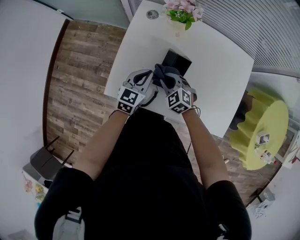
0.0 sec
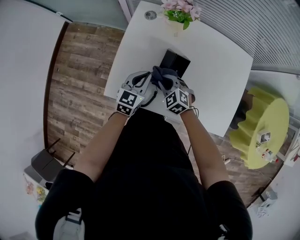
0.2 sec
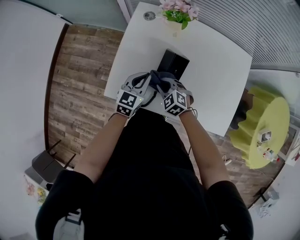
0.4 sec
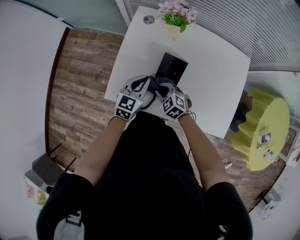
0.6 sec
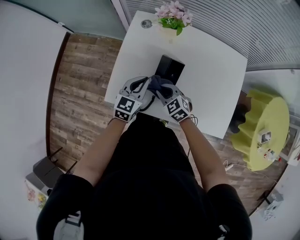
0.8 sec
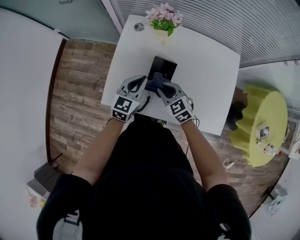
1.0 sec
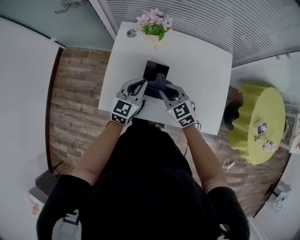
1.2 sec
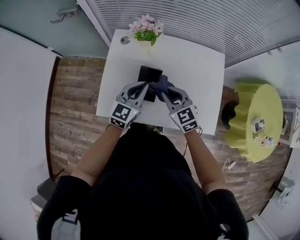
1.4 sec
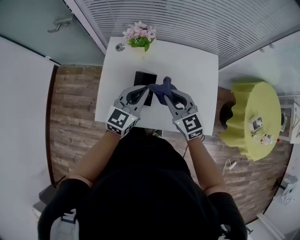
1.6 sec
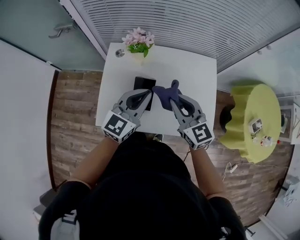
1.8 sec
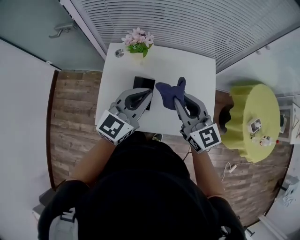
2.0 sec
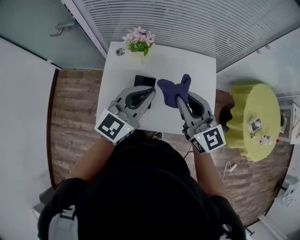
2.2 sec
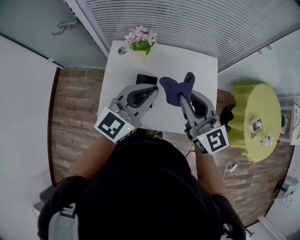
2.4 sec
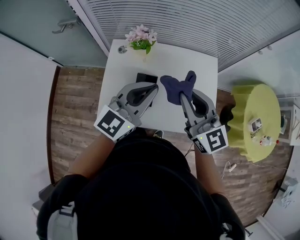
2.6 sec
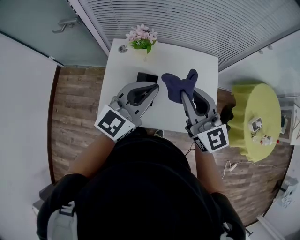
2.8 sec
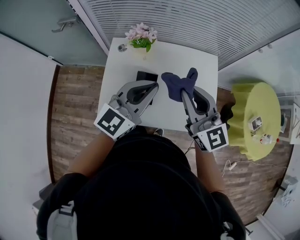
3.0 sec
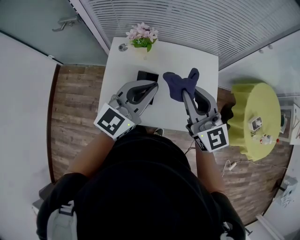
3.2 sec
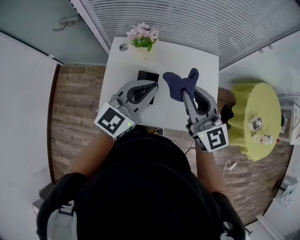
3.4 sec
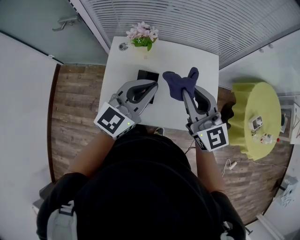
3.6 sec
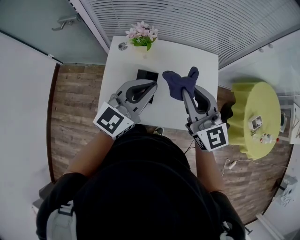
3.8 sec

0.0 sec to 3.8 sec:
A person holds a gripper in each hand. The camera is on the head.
0.0 sec to 1.2 sec: The grippers both shift upward and to the right by some 10 cm. The right gripper swivels about 20 degrees.
1.2 sec to 2.6 sec: Both grippers travel together upward, approximately 25 cm. The right gripper angles its fingers upward, by about 30 degrees. Meanwhile the left gripper swivels about 20 degrees.
2.6 sec to 3.8 sec: Both grippers stay about where they are.

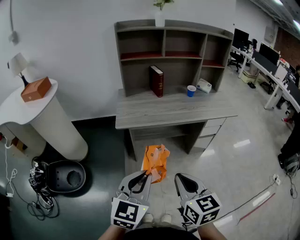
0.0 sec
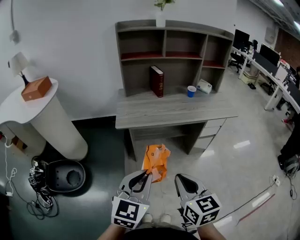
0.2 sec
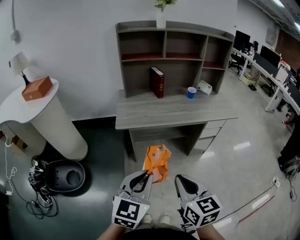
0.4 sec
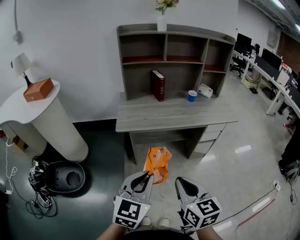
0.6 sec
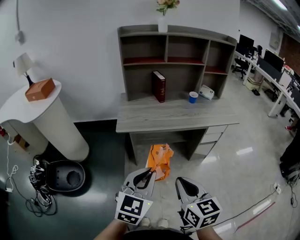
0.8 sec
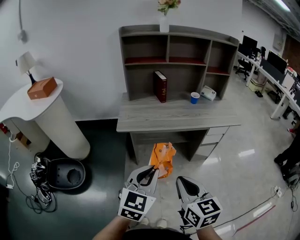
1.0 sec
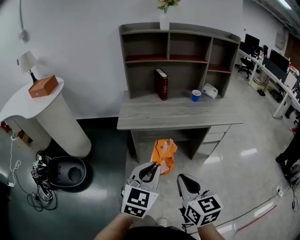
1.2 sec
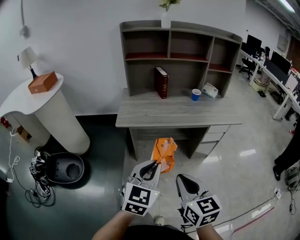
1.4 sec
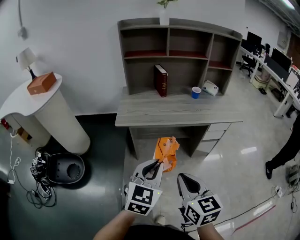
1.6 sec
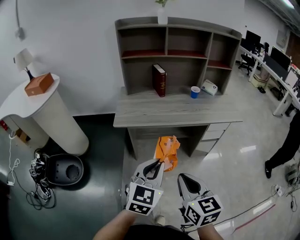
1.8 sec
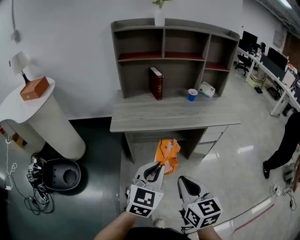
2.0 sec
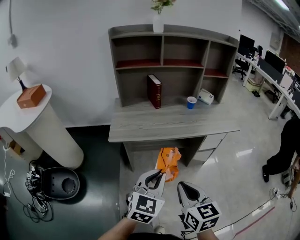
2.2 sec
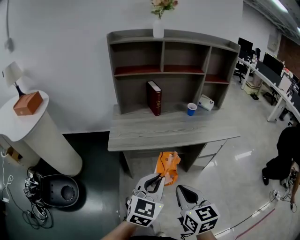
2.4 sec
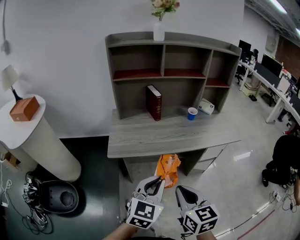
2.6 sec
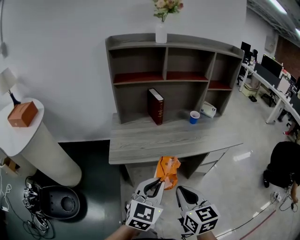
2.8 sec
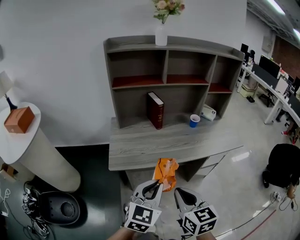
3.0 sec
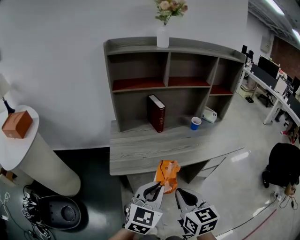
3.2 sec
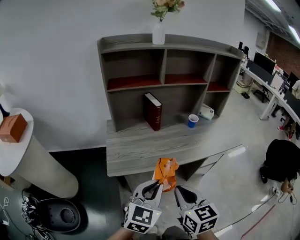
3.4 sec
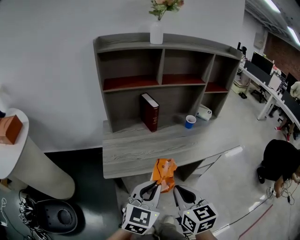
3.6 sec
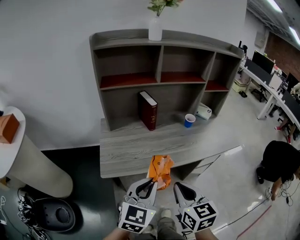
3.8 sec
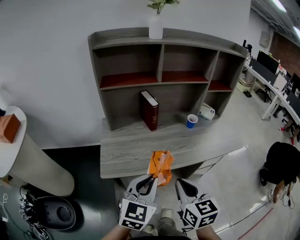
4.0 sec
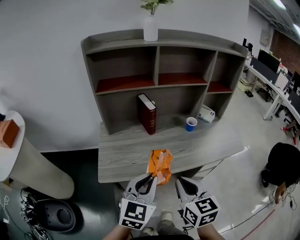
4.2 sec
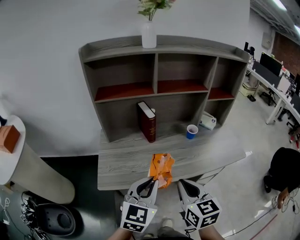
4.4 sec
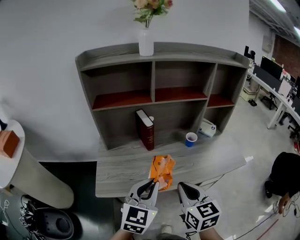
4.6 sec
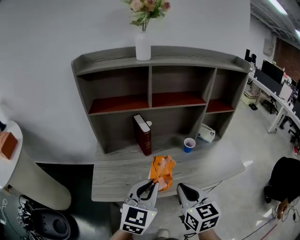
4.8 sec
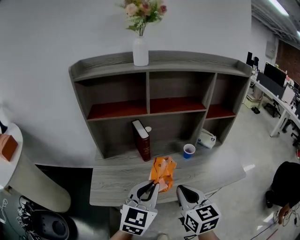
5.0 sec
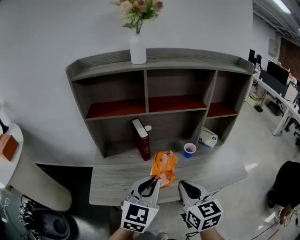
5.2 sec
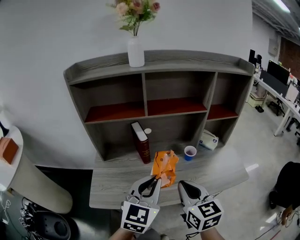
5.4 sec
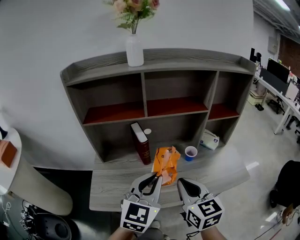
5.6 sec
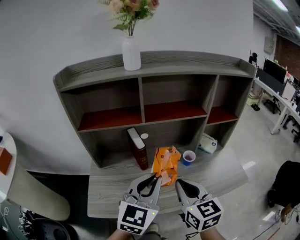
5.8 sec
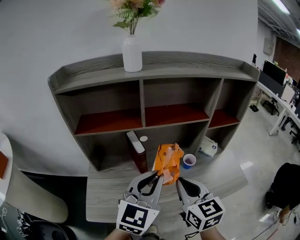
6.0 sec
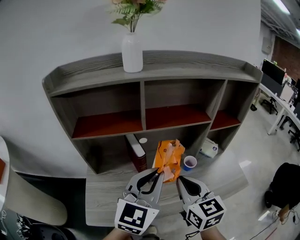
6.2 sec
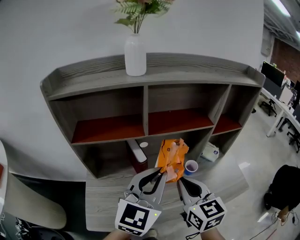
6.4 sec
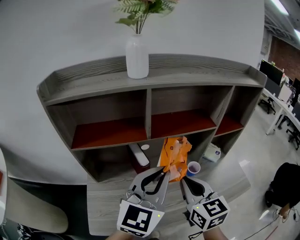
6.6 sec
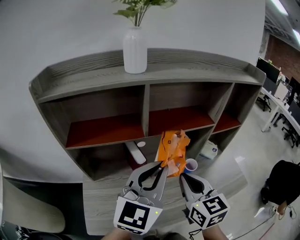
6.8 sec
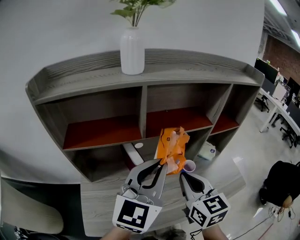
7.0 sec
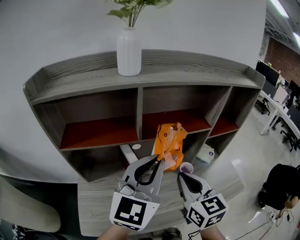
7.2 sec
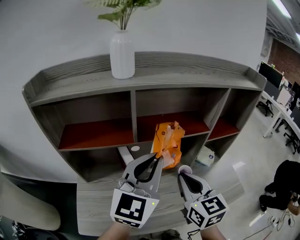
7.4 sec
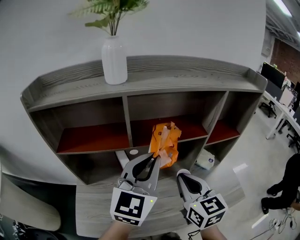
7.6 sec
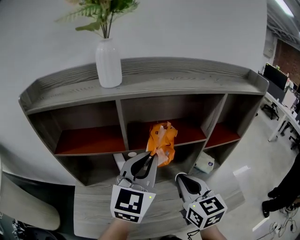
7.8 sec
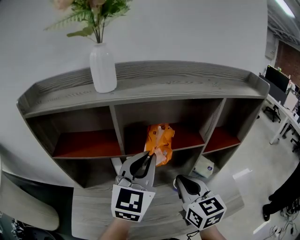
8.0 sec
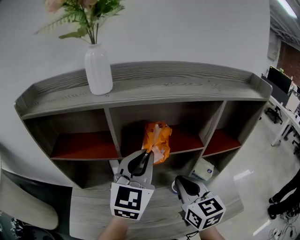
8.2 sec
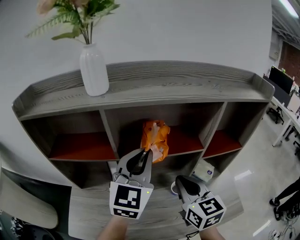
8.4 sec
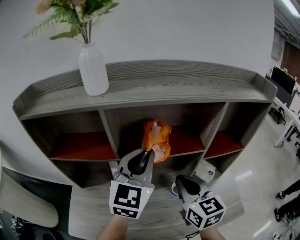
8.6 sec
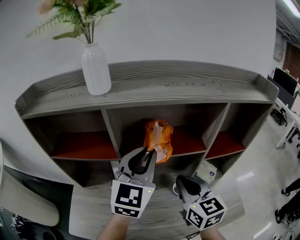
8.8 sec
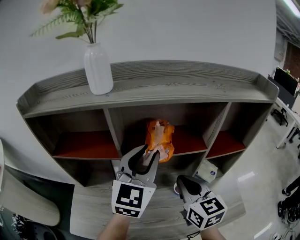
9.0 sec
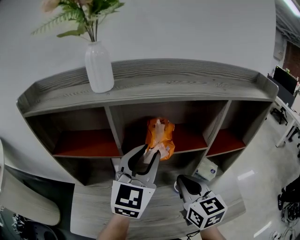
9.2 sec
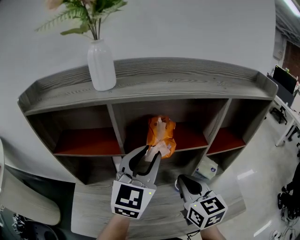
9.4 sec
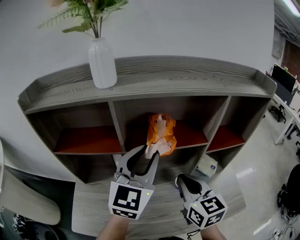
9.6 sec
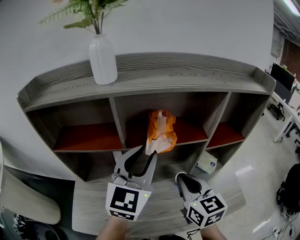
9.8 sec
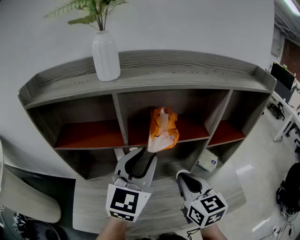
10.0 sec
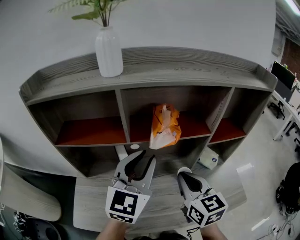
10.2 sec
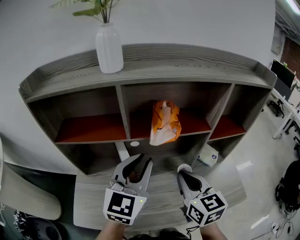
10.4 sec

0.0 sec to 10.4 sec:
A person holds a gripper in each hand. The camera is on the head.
0.0 sec to 1.4 sec: The right gripper shifts about 5 cm to the right. The left gripper heads to the right and forward, covering roughly 10 cm.
1.4 sec to 3.0 sec: Both grippers travel together forward, roughly 20 cm.
3.0 sec to 4.4 sec: The two grippers go some 15 cm forward.
4.4 sec to 6.0 sec: The left gripper moves forward and upward, roughly 20 cm. Meanwhile the right gripper heads forward, covering approximately 20 cm.
6.0 sec to 7.4 sec: The left gripper moves forward and upward, approximately 15 cm; the right gripper moves forward, approximately 10 cm.
7.4 sec to 9.0 sec: The right gripper travels forward and to the right by roughly 10 cm. The left gripper is displaced forward by some 10 cm, and opens.
9.0 sec to 10.4 sec: The right gripper shifts by roughly 5 cm. Meanwhile the left gripper shifts roughly 5 cm backward.

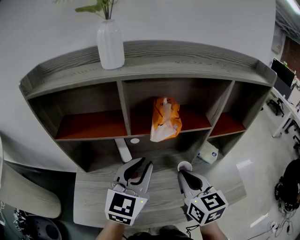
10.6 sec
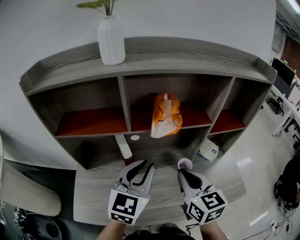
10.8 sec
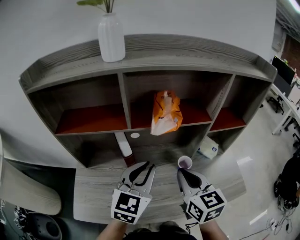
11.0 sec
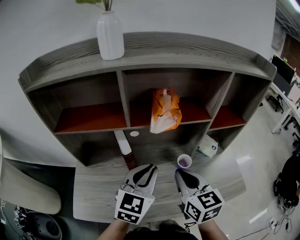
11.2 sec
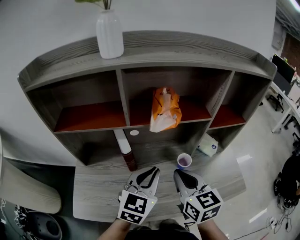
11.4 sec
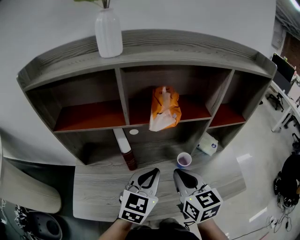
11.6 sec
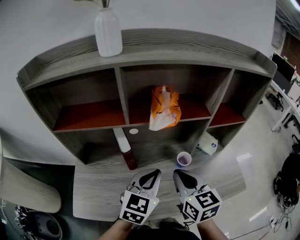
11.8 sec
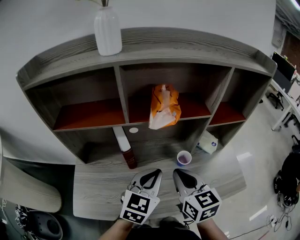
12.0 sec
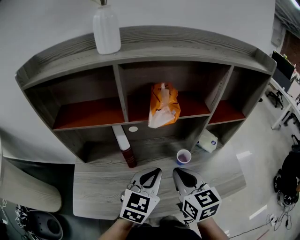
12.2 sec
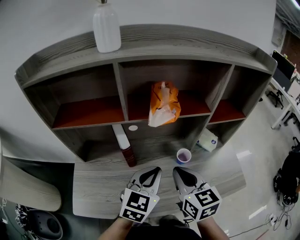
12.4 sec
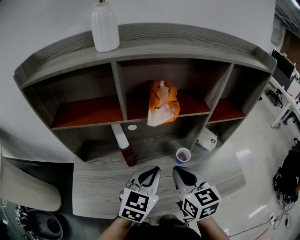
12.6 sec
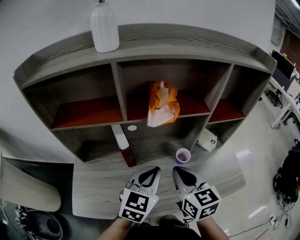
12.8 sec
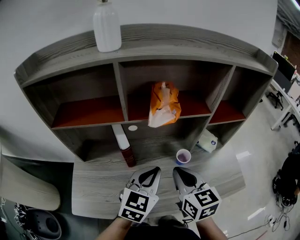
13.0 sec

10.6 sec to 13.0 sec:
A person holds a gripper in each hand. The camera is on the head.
10.6 sec to 11.8 sec: The left gripper moves downward, roughly 10 cm.
11.8 sec to 13.0 sec: Neither gripper changes place.

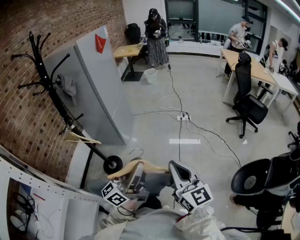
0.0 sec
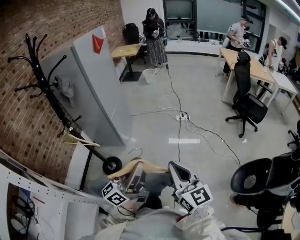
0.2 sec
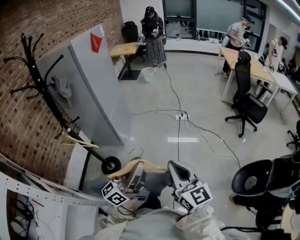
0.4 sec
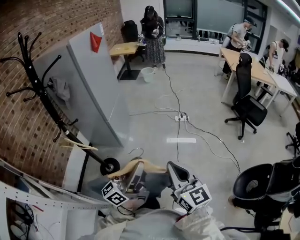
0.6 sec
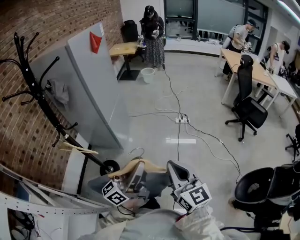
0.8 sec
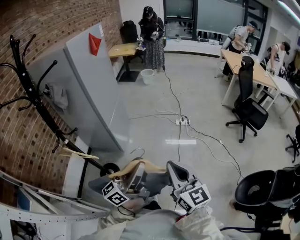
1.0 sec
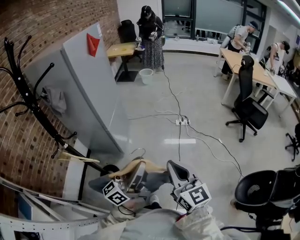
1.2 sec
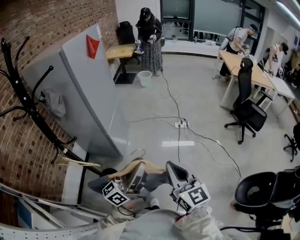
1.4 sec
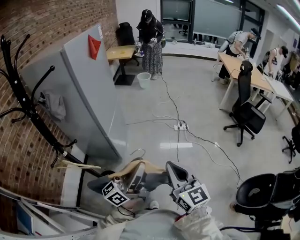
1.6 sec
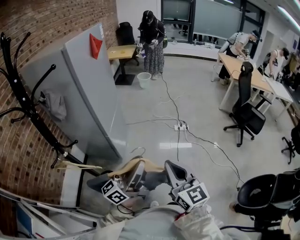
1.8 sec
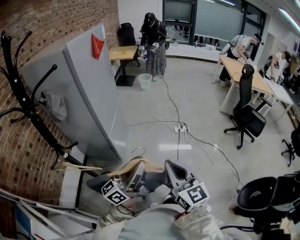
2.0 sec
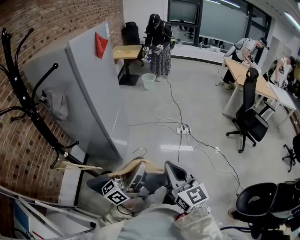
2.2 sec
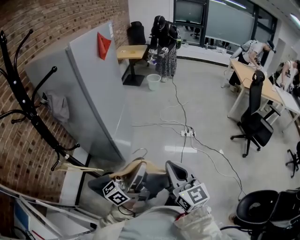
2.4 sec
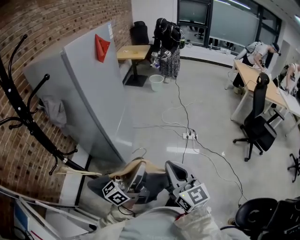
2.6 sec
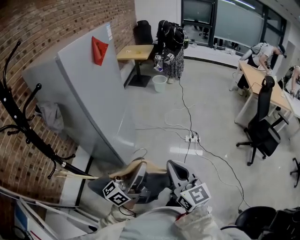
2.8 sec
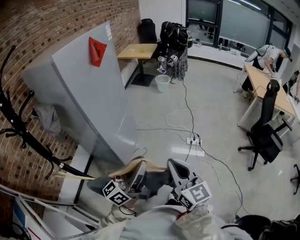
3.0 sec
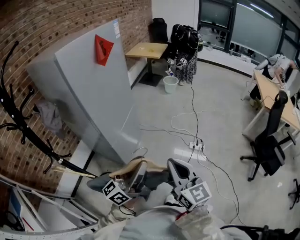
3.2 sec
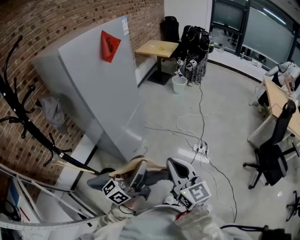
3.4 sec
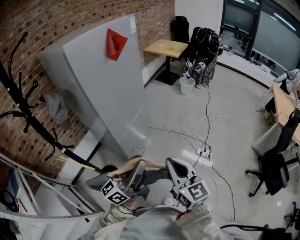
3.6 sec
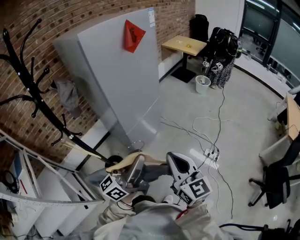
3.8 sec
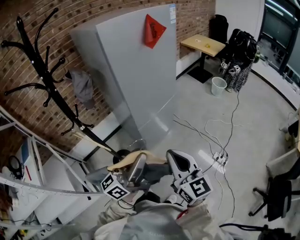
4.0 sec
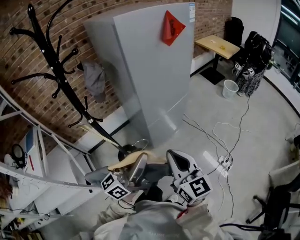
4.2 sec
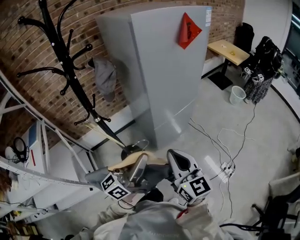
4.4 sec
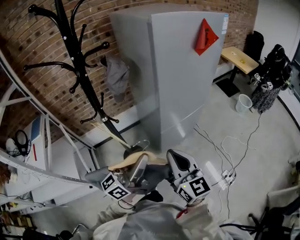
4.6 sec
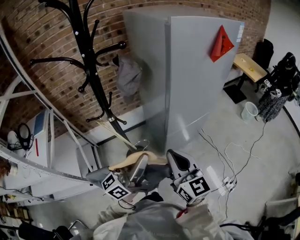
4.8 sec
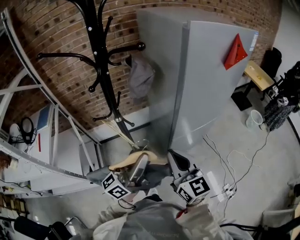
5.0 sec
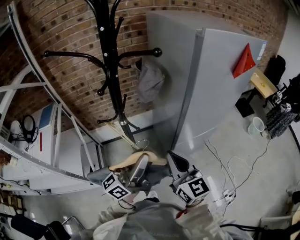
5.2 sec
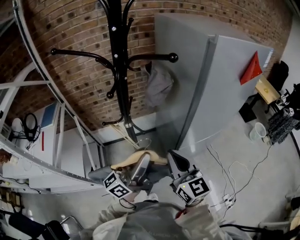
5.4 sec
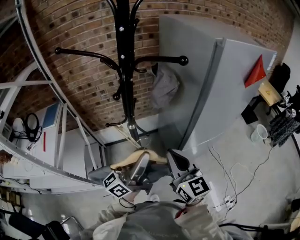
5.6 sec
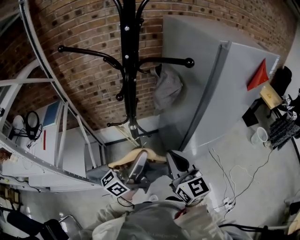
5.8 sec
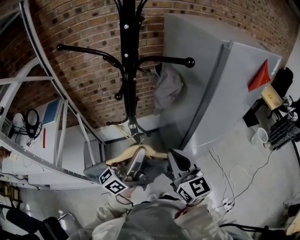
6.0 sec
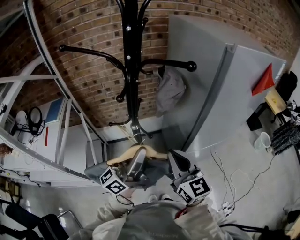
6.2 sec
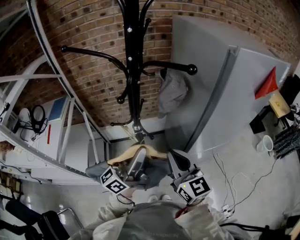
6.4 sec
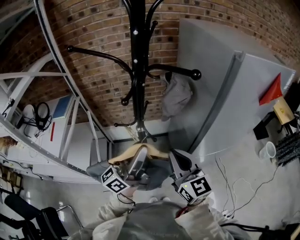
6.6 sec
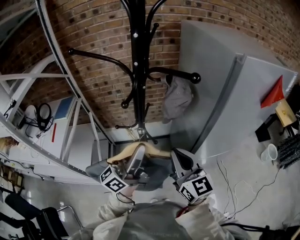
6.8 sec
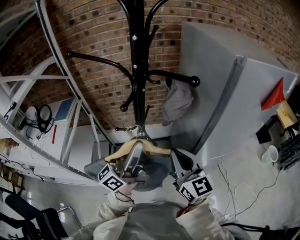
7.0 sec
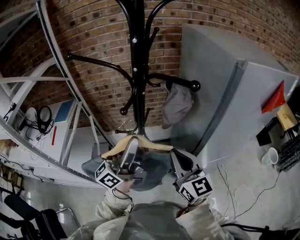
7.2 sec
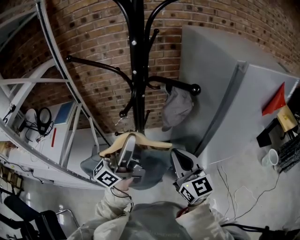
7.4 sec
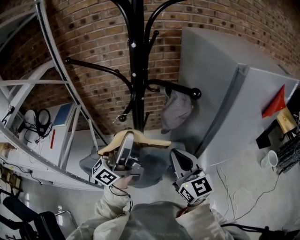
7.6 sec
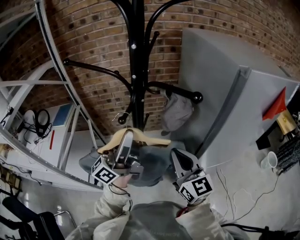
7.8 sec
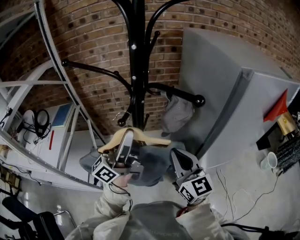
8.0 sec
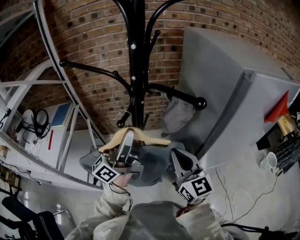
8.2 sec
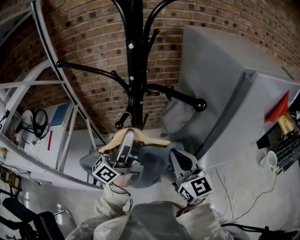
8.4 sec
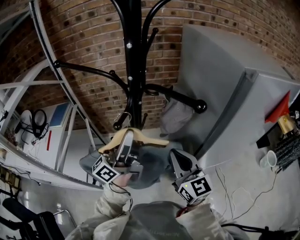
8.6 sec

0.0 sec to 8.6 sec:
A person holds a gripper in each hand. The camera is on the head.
0.0 sec to 1.4 sec: The two grippers go approximately 25 cm forward and to the left.
1.4 sec to 2.8 sec: Both grippers travel together forward, about 20 cm.
2.8 sec to 4.4 sec: The right gripper moves about 20 cm, and turns by some 40 degrees. Meanwhile the left gripper ends up approximately 10 cm from where it was, and changes its angle by roughly 40 degrees.
4.4 sec to 5.8 sec: The grippers both shift to the left and forward by some 25 cm.
5.8 sec to 7.2 sec: The left gripper shifts approximately 10 cm forward and upward; the right gripper goes approximately 5 cm forward.
7.2 sec to 8.6 sec: The grippers both shift forward by about 5 cm.
